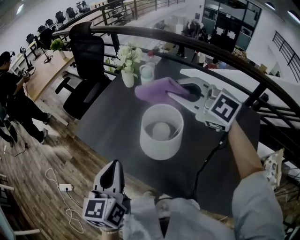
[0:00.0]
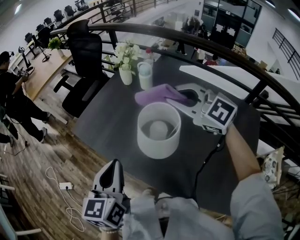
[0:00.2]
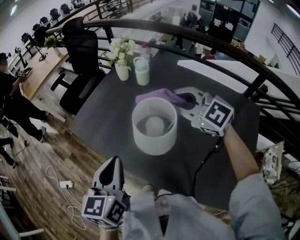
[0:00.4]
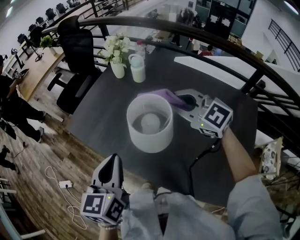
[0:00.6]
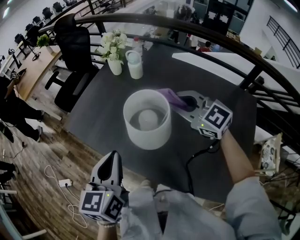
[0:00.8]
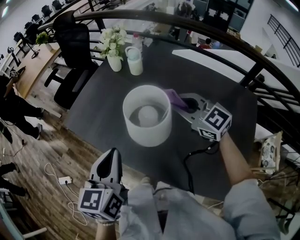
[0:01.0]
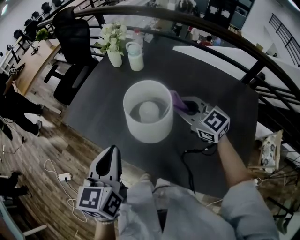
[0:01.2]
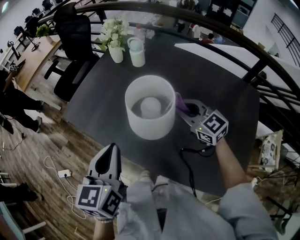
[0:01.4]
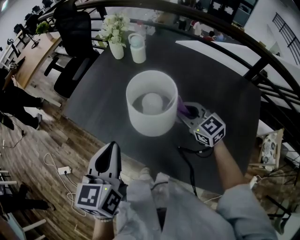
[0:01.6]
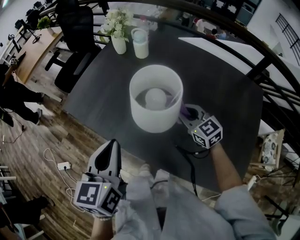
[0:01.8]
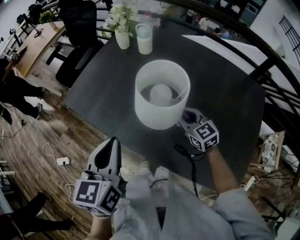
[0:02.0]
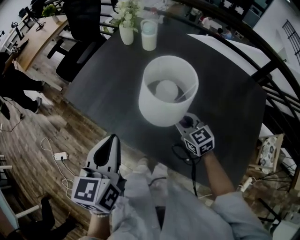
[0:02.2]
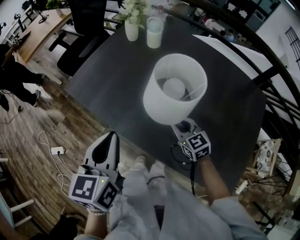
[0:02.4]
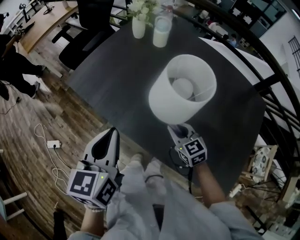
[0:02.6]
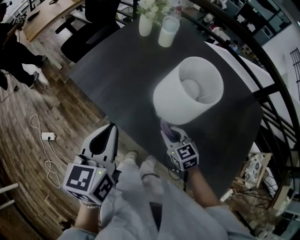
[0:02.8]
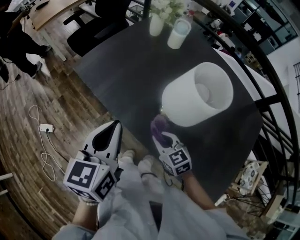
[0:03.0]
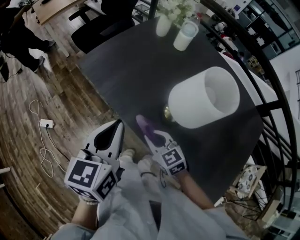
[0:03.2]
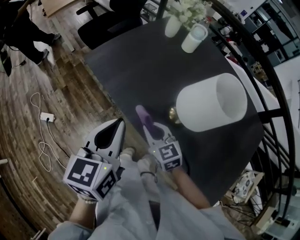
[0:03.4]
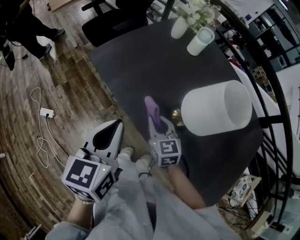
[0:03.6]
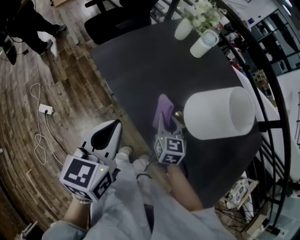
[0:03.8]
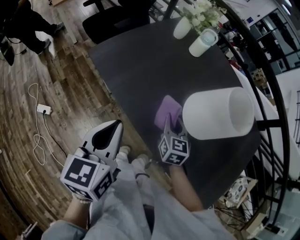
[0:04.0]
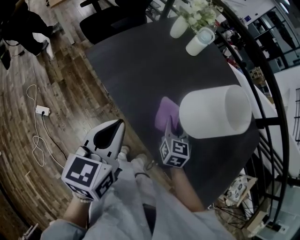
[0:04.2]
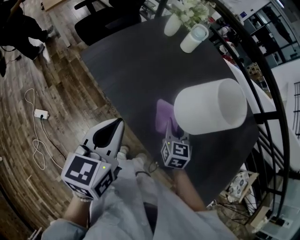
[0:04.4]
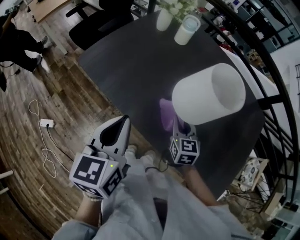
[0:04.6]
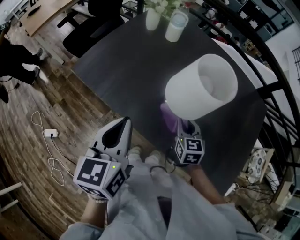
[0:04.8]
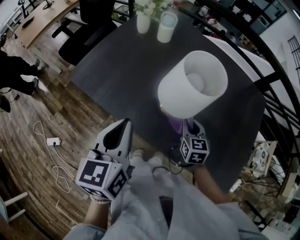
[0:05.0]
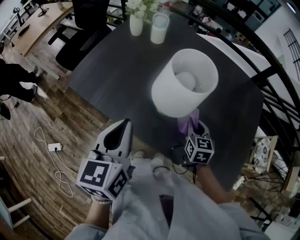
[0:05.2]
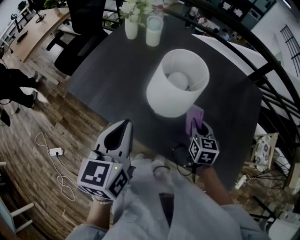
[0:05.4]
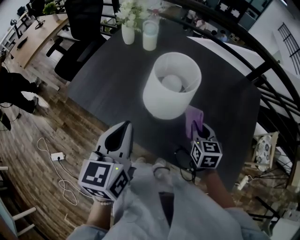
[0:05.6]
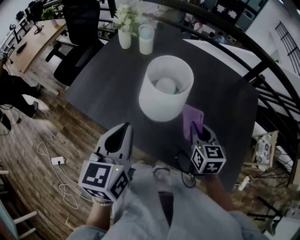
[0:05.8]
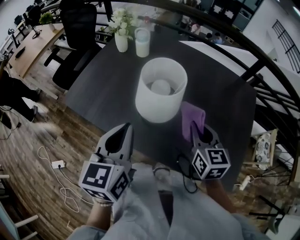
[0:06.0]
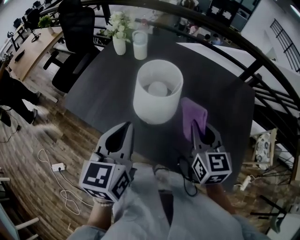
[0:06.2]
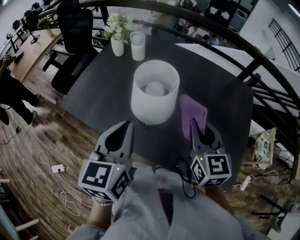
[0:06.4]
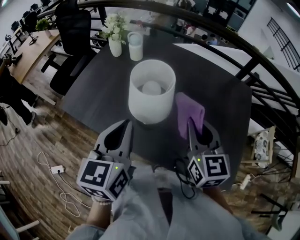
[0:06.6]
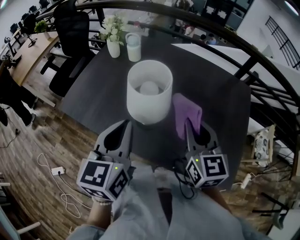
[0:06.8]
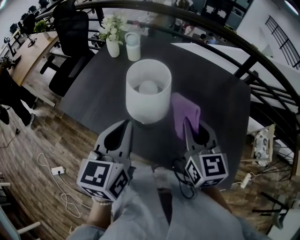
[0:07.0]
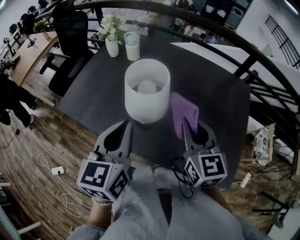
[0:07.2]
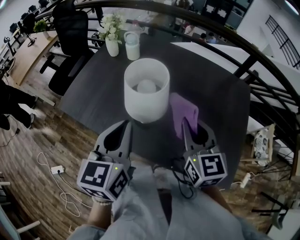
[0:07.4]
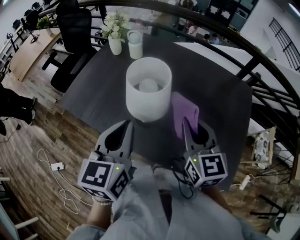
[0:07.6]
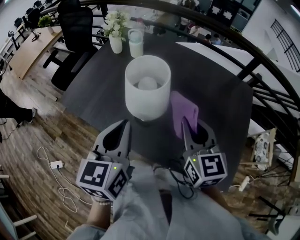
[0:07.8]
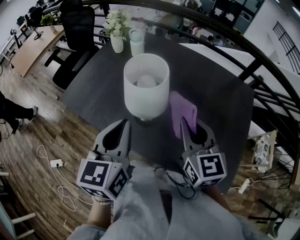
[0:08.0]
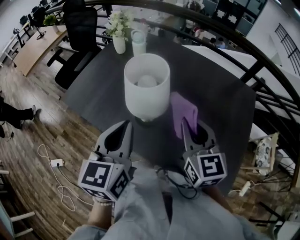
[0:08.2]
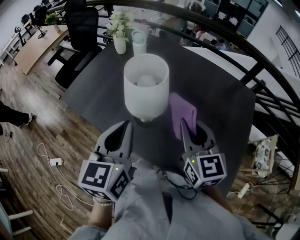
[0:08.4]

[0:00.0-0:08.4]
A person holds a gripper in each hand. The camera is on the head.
0:00.0 to 0:01.4: The right gripper is displaced downward by about 20 cm, and swivels approximately 30 degrees.
0:01.4 to 0:02.8: The left gripper travels to the left by roughly 5 cm. Meanwhile the right gripper moves downward, to the left and backward, approximately 20 cm, and rotates about 20 degrees.
0:02.8 to 0:04.2: The left gripper travels to the left by about 5 cm; the right gripper is displaced forward by roughly 10 cm, travels to the left and back again, roughly 15 cm each way, and rotates approximately 20 degrees.
0:04.2 to 0:05.6: The right gripper goes approximately 20 cm to the right. Meanwhile the left gripper is displaced to the right by about 10 cm.
0:05.6 to 0:07.0: The right gripper is displaced upward by some 15 cm, and rotates about 20 degrees. Meanwhile the left gripper shifts roughly 5 cm to the right.
0:07.0 to 0:08.4: There are only small adjustments of the grippers.

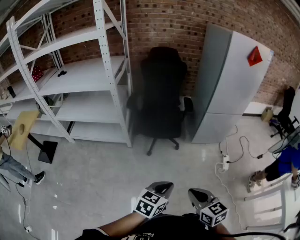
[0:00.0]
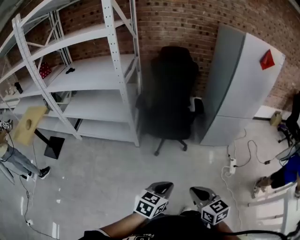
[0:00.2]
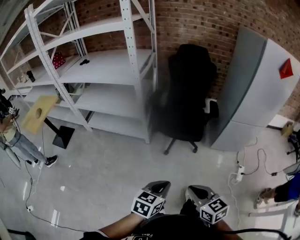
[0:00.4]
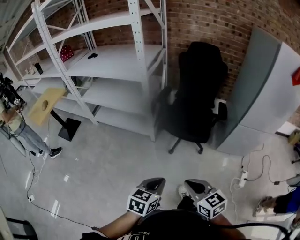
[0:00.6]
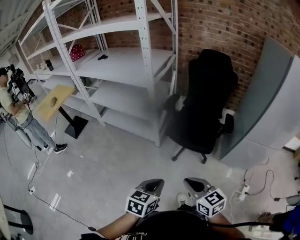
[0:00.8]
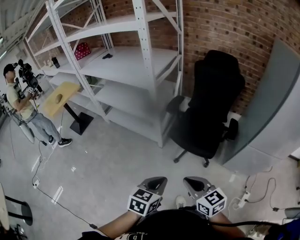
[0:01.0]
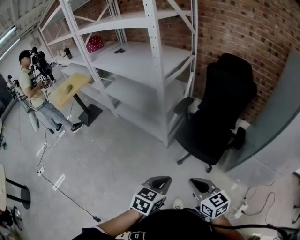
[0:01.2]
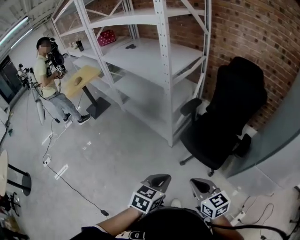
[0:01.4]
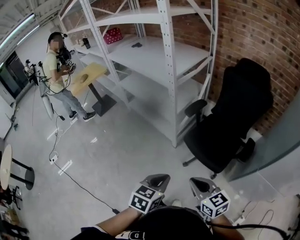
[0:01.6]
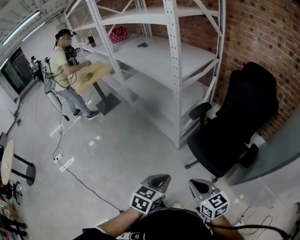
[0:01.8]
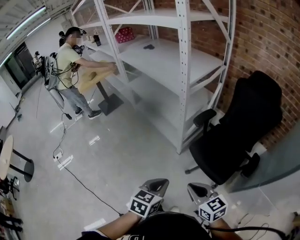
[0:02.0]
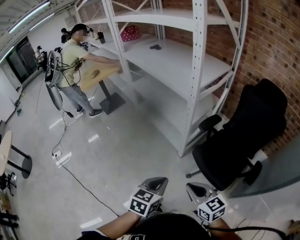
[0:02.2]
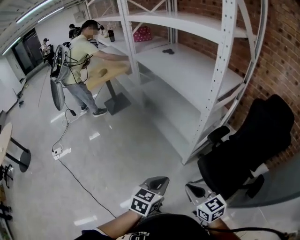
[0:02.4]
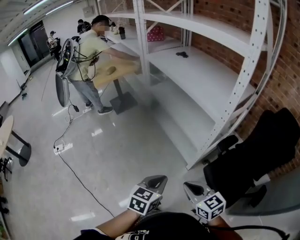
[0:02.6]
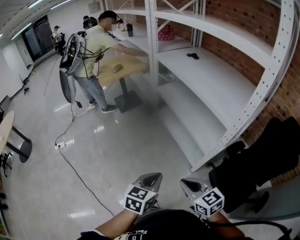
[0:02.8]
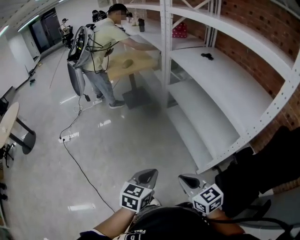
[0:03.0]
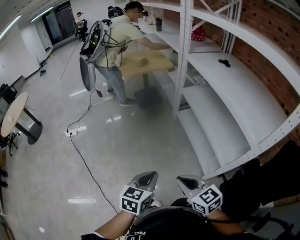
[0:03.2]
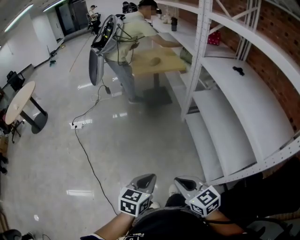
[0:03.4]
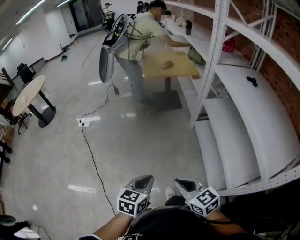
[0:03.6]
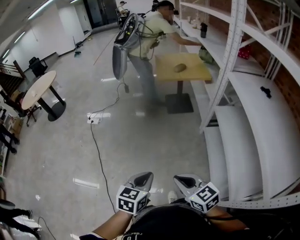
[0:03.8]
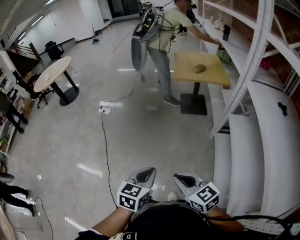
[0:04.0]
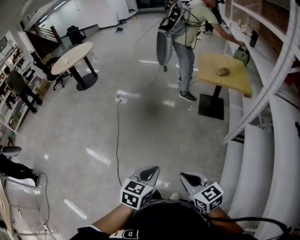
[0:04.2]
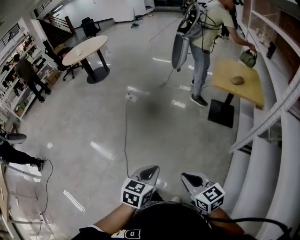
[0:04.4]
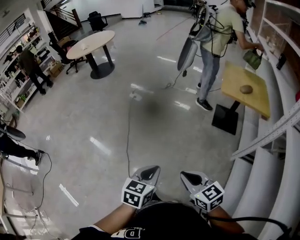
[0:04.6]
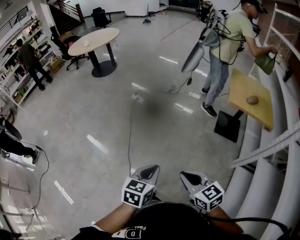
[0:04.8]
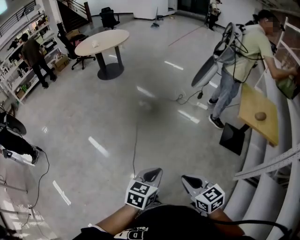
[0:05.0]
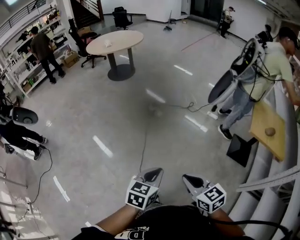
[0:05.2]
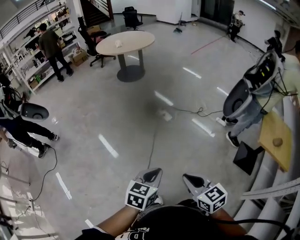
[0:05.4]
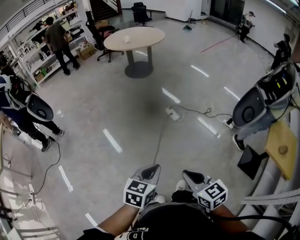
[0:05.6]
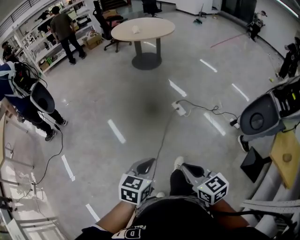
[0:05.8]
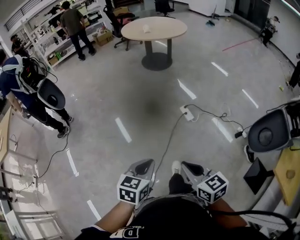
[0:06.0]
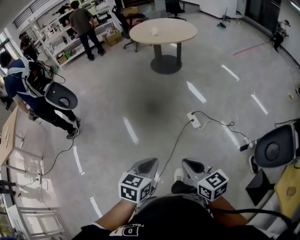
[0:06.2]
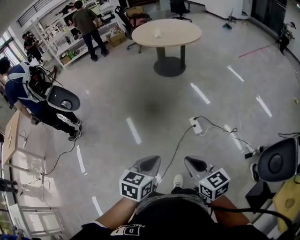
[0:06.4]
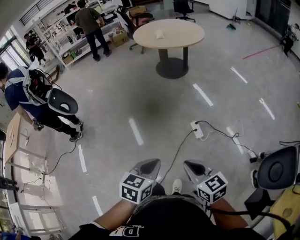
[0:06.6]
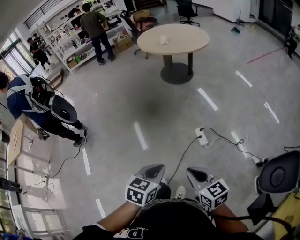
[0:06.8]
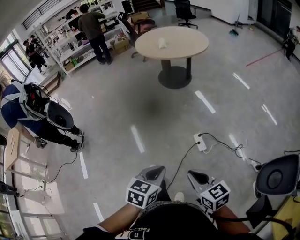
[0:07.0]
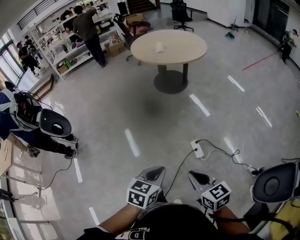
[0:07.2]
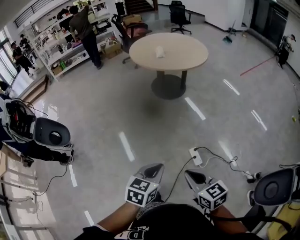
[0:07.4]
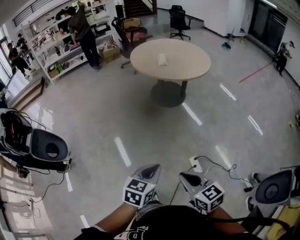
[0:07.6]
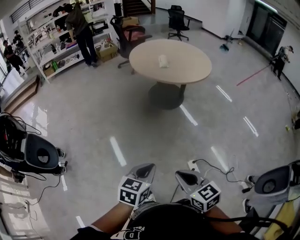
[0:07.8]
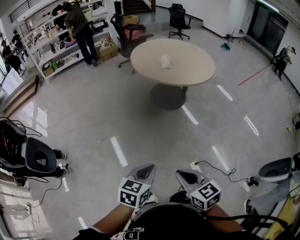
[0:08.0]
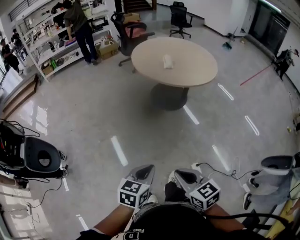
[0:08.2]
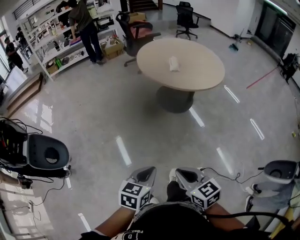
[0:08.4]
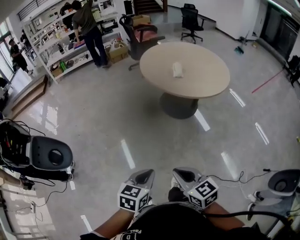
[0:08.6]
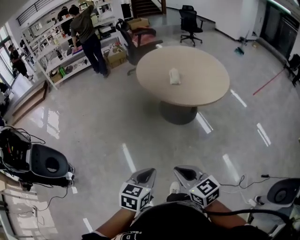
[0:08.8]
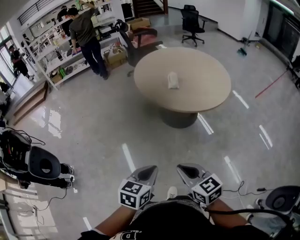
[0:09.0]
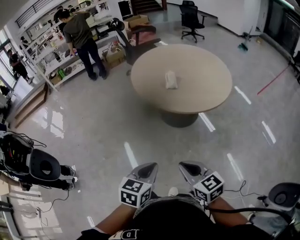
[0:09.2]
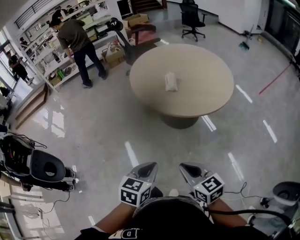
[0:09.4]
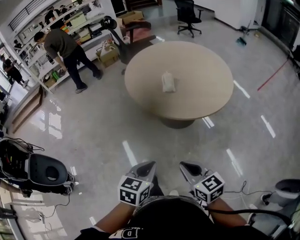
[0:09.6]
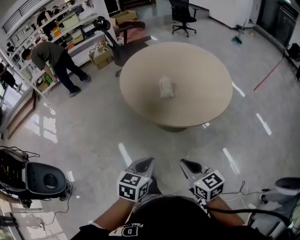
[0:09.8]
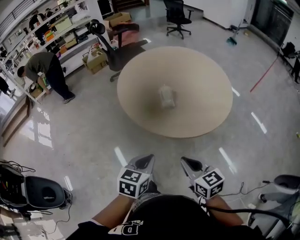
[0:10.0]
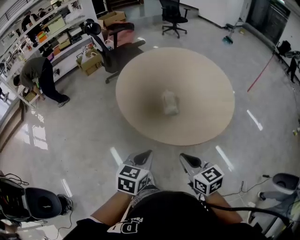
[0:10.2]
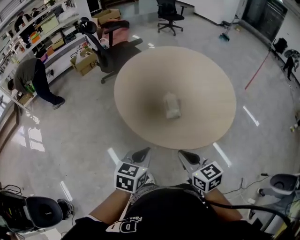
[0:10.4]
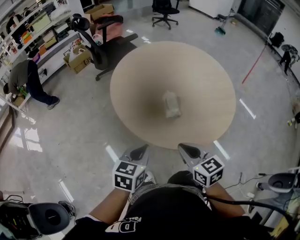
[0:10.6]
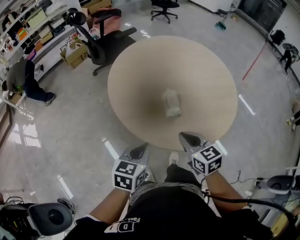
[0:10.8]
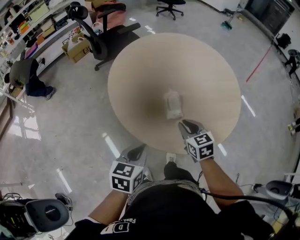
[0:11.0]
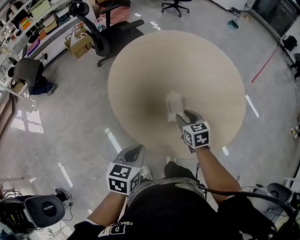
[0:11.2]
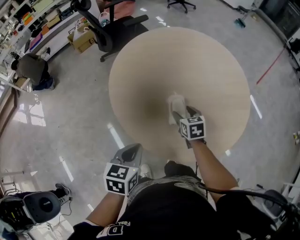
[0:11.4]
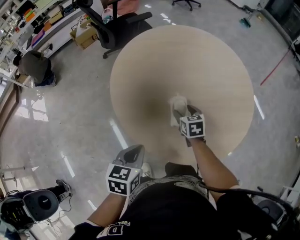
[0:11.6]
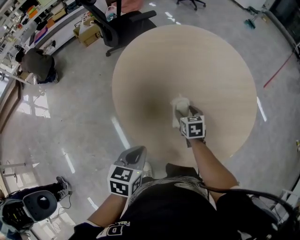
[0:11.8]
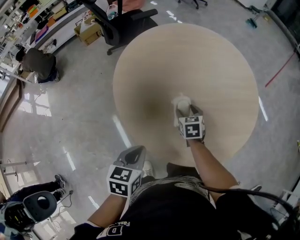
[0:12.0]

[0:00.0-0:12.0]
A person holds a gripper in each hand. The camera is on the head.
0:00.0 to 0:01.6: The right gripper shifts by some 35 cm, and swivels some 40 degrees. Meanwhile the left gripper moves approximately 30 cm, and rotates roughly 50 degrees.
0:01.6 to 0:03.0: The pair of grippers is taken some 40 cm. The right gripper rotates about 30 degrees. The left gripper changes its angle by some 30 degrees.
0:03.0 to 0:04.4: The right gripper moves some 35 cm, and swivels about 50 degrees; the left gripper ends up roughly 30 cm from where it was, and rotates approximately 50 degrees.
0:04.4 to 0:06.0: The two grippers travel together, approximately 70 cm. The left gripper swivels some 40 degrees; the right gripper turns by about 30 degrees.
0:06.0 to 0:07.6: Both grippers are carried forward, some 60 cm.
0:07.6 to 0:09.0: Both grippers move forward, about 40 cm.
0:09.0 to 0:10.4: Both grippers are carried forward, approximately 50 cm.
0:10.4 to 0:12.0: The left gripper travels forward and downward by some 20 cm. The right gripper moves forward and downward, approximately 40 cm, rotates some 30 degrees, and opens its fingers.

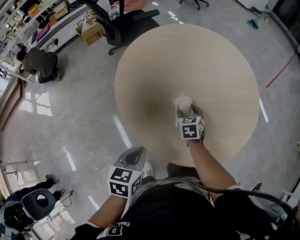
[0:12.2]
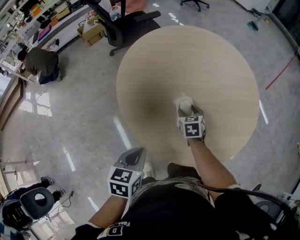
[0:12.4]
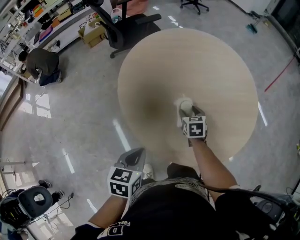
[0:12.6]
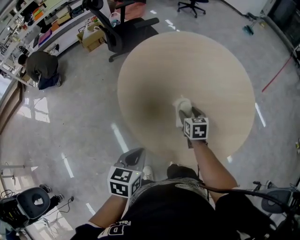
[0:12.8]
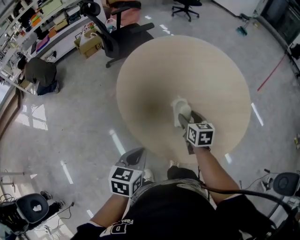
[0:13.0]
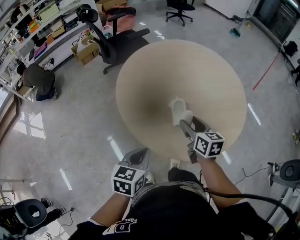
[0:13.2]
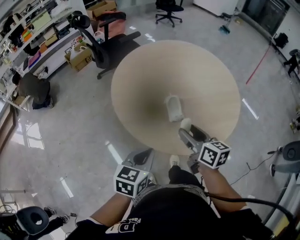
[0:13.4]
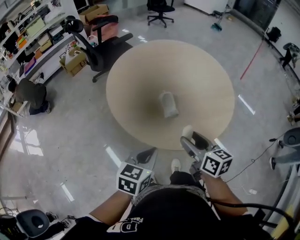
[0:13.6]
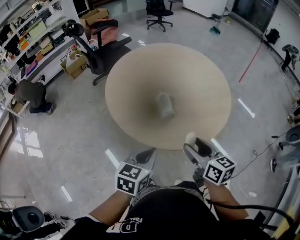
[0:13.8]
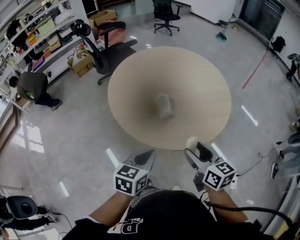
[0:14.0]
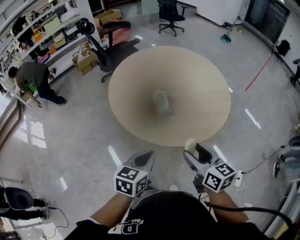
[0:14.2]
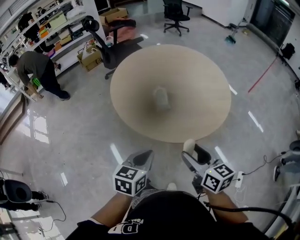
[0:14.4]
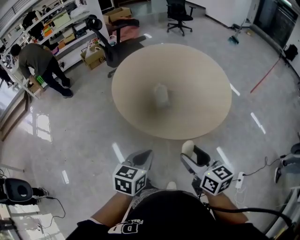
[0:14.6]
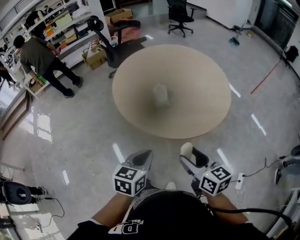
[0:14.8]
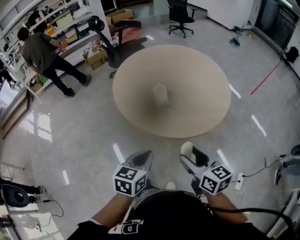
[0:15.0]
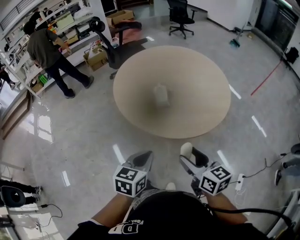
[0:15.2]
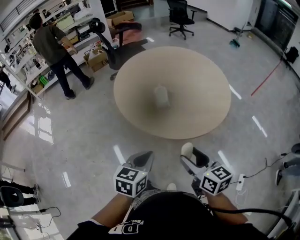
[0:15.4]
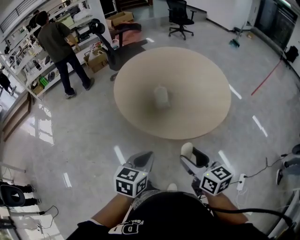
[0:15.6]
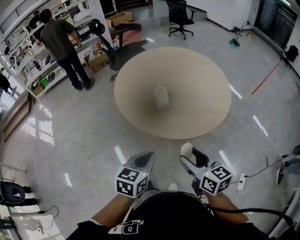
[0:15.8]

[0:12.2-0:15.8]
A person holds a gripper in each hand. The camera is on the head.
0:12.2 to 0:14.0: The left gripper goes about 20 cm backward, to the right and upward; the right gripper goes approximately 40 cm backward and upward, and swivels some 40 degrees.
0:14.0 to 0:15.8: The two grippers go roughly 15 cm backward and to the right.
